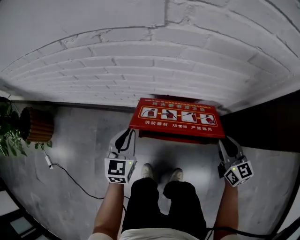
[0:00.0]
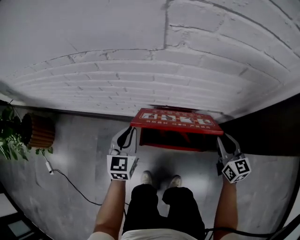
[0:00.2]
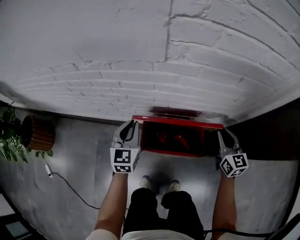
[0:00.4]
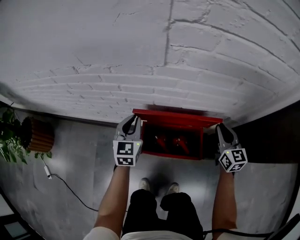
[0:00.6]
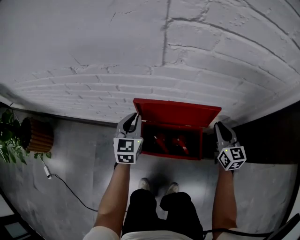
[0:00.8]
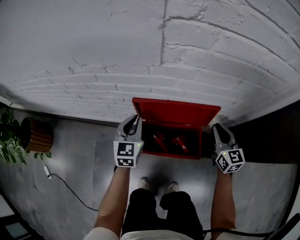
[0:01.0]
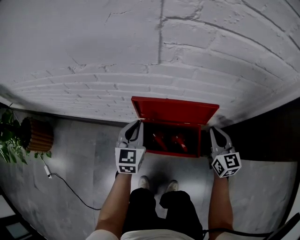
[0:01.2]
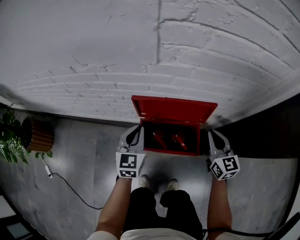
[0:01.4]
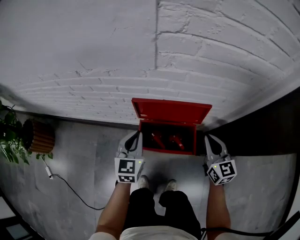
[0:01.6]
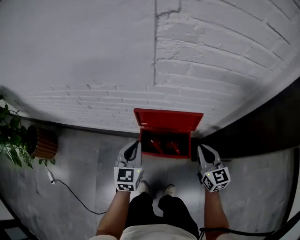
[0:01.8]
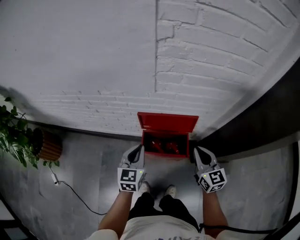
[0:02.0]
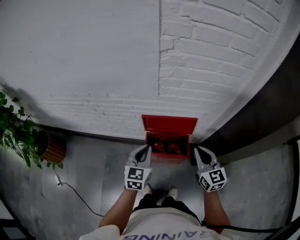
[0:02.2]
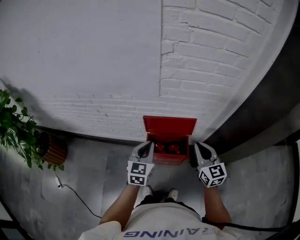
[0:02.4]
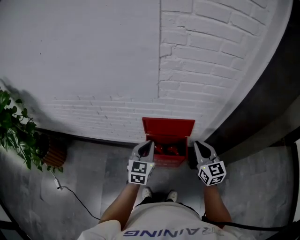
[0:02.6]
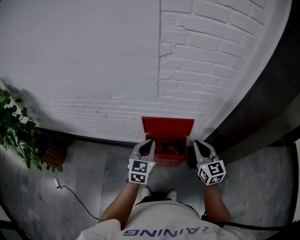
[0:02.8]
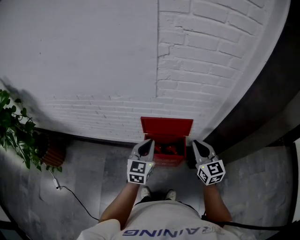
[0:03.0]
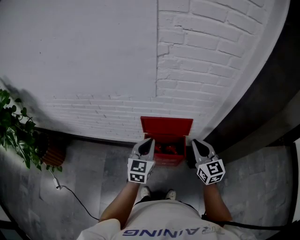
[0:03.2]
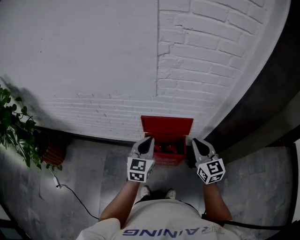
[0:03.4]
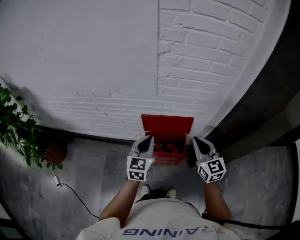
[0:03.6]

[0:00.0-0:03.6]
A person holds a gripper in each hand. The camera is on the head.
0:00.0 to 0:01.8: Both grippers move upward, roughly 15 cm. The right gripper closes.
0:01.8 to 0:03.6: The left gripper goes approximately 15 cm upward and backward; the right gripper moves upward, some 15 cm.

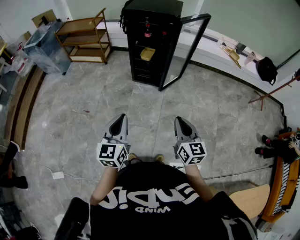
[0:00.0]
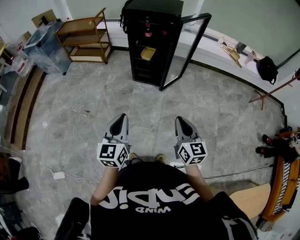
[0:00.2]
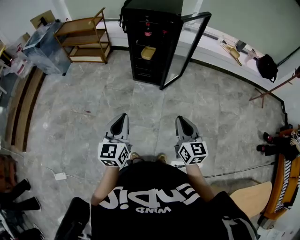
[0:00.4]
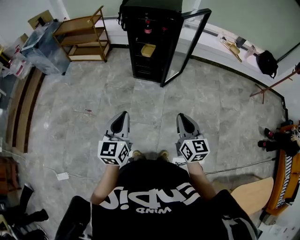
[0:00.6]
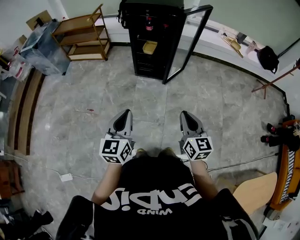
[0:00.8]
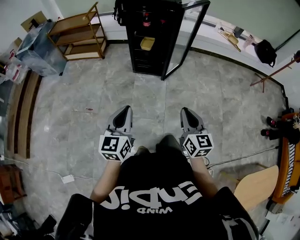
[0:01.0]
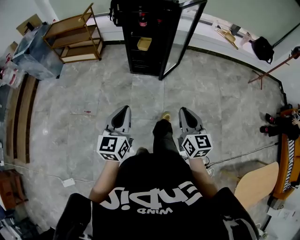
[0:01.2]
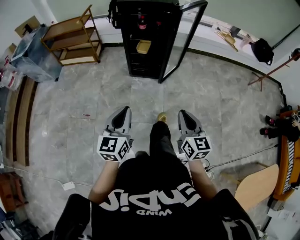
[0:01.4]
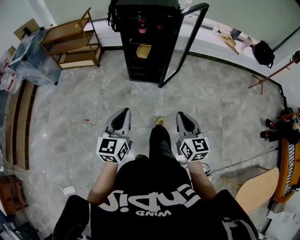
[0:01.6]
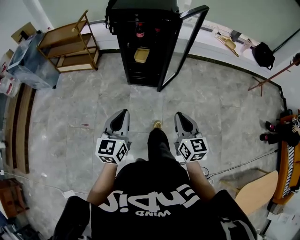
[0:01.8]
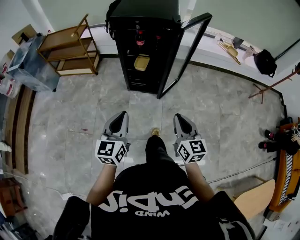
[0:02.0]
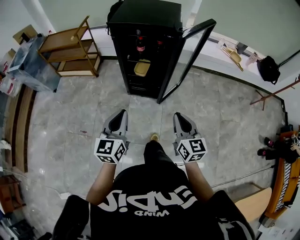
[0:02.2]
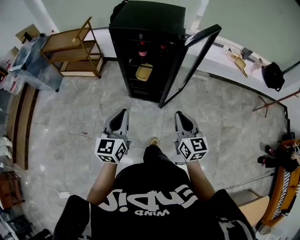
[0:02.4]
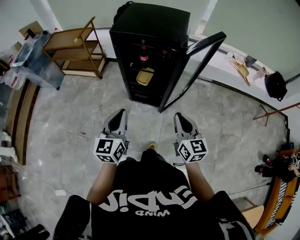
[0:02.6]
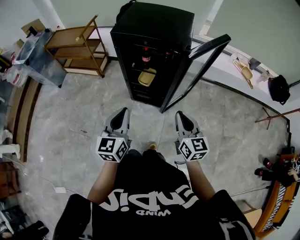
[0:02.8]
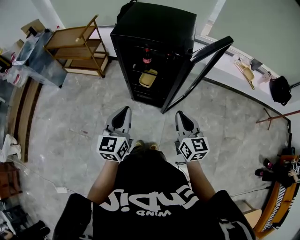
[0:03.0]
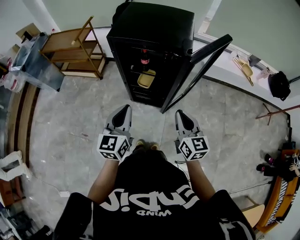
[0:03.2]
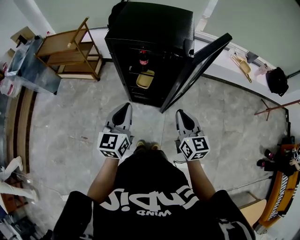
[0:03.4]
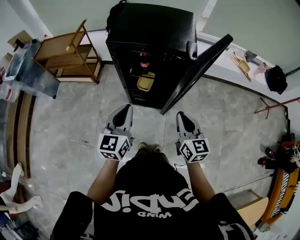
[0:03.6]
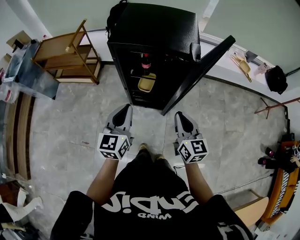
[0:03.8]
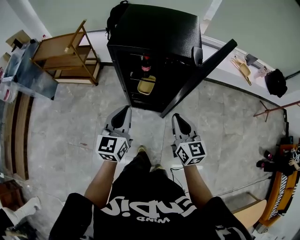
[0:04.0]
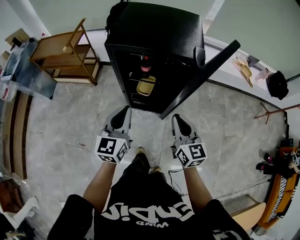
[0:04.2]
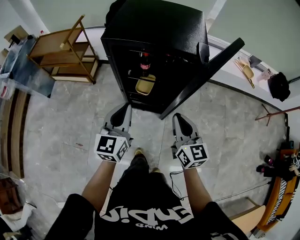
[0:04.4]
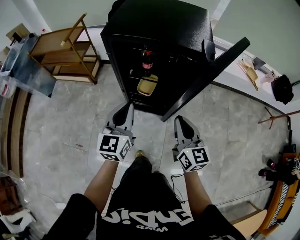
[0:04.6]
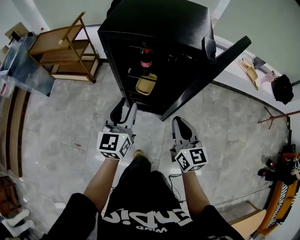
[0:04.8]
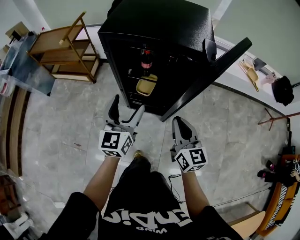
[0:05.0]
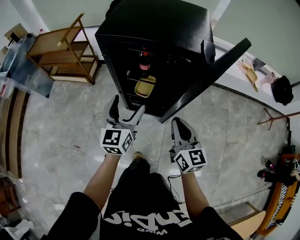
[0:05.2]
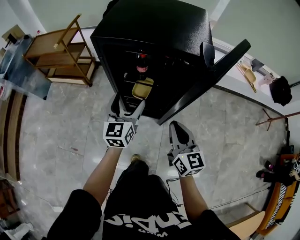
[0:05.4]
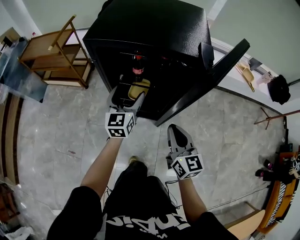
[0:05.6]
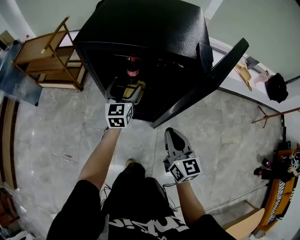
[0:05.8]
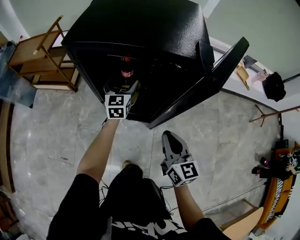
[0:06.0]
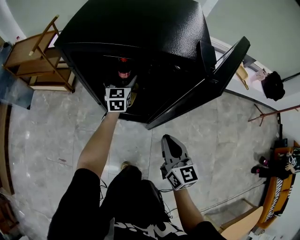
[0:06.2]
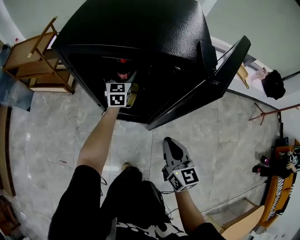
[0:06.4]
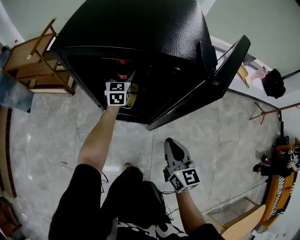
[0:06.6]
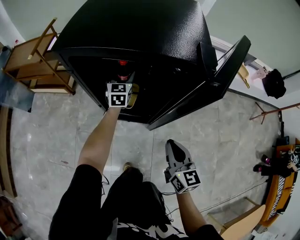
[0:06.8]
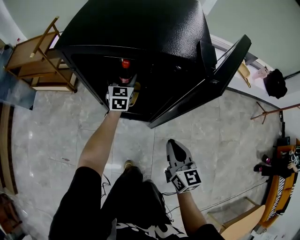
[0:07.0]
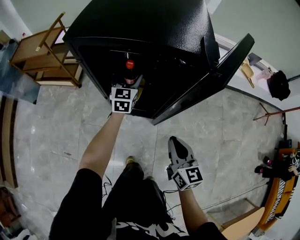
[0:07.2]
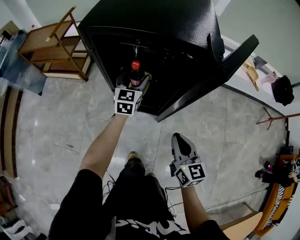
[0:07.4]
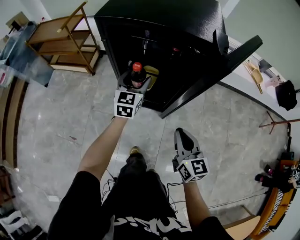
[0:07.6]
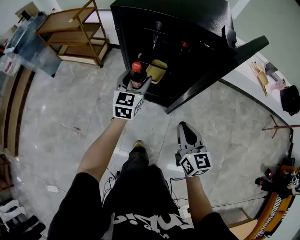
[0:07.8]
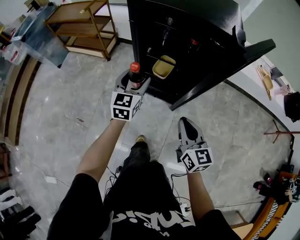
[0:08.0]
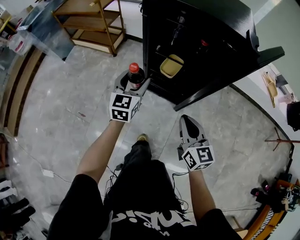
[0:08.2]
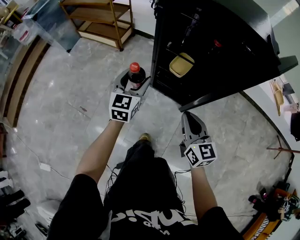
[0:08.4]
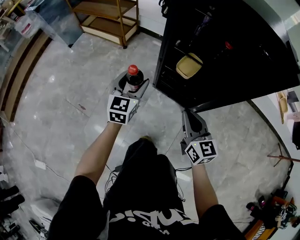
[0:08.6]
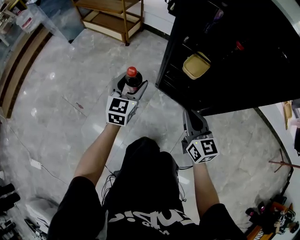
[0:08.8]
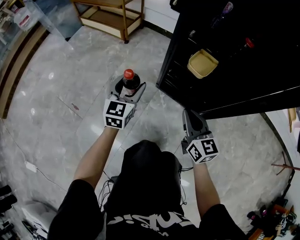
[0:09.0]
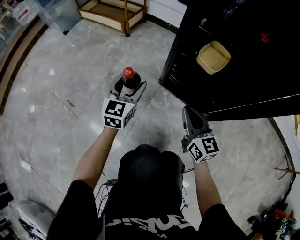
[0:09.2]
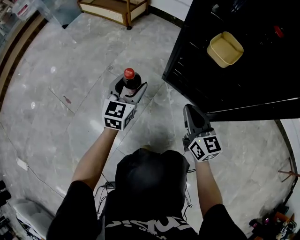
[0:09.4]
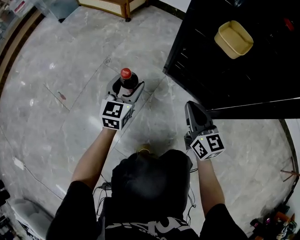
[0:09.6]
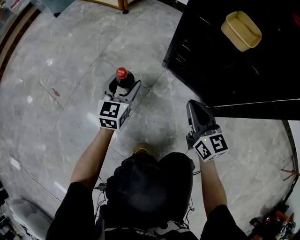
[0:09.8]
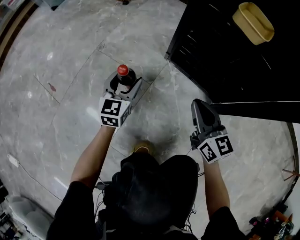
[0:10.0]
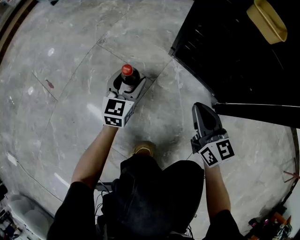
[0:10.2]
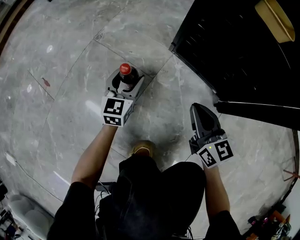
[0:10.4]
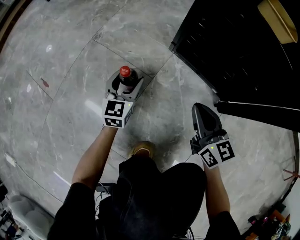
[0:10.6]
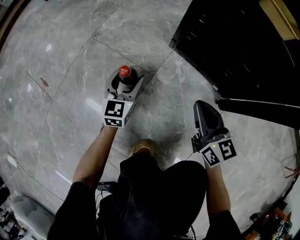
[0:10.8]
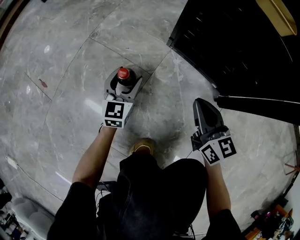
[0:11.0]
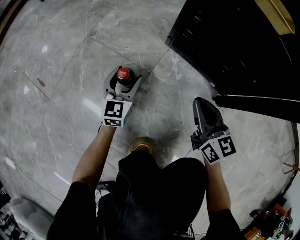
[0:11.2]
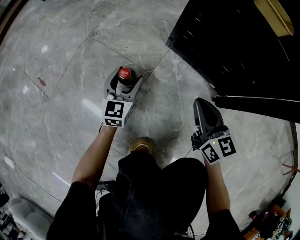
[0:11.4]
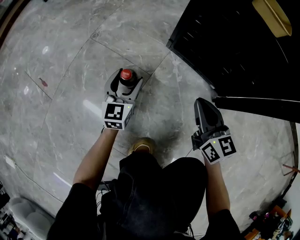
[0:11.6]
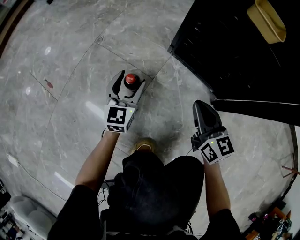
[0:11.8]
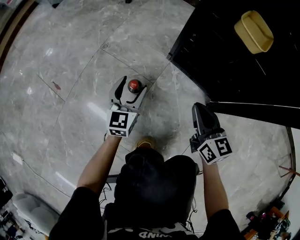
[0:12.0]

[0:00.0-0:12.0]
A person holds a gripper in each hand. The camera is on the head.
0:00.0 to 0:01.6: The left gripper heads forward, covering about 10 cm, while the right gripper moves forward and to the left, some 10 cm.
0:01.6 to 0:03.0: Both grippers travel together forward, roughly 30 cm.
0:03.0 to 0:04.4: The left gripper is displaced forward and downward by some 15 cm, while the right gripper moves forward and to the left, some 10 cm.
0:04.4 to 0:06.0: The right gripper shifts some 10 cm downward; the left gripper heads forward and downward, covering some 30 cm, and opens its fingers.
0:06.0 to 0:07.6: The left gripper moves backward, approximately 10 cm; the right gripper heads backward, covering about 5 cm.
0:07.6 to 0:09.0: Both grippers travel together downward and to the left, about 30 cm. The right gripper changes its angle by some 20 degrees.
0:09.0 to 0:10.4: Both grippers move downward, roughly 35 cm.
0:10.4 to 0:12.0: The two grippers go roughly 10 cm upward.

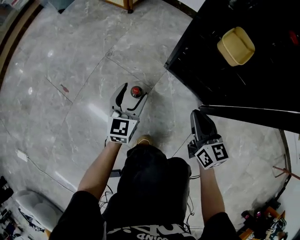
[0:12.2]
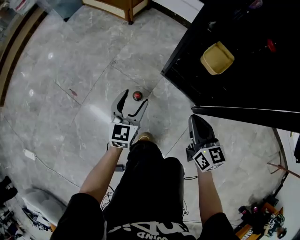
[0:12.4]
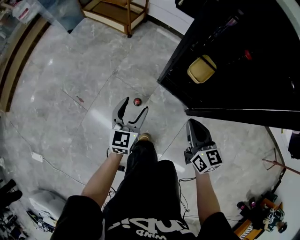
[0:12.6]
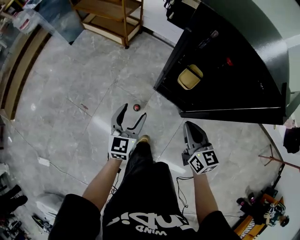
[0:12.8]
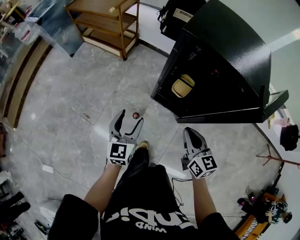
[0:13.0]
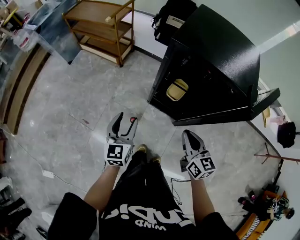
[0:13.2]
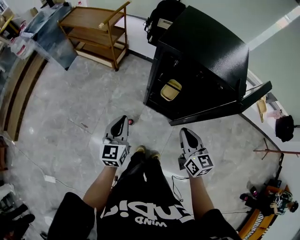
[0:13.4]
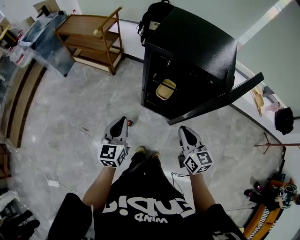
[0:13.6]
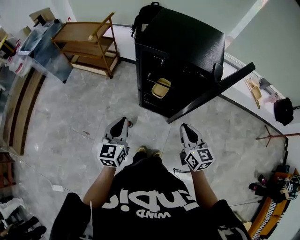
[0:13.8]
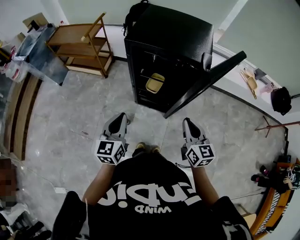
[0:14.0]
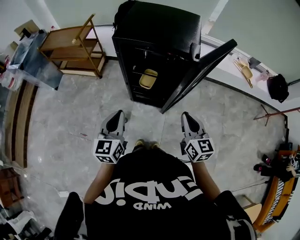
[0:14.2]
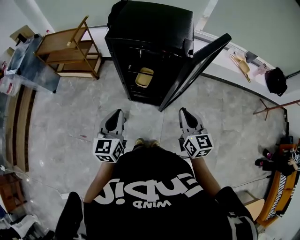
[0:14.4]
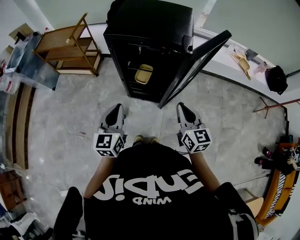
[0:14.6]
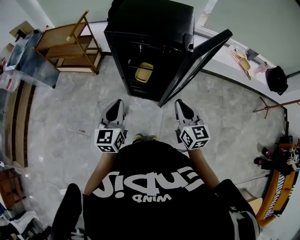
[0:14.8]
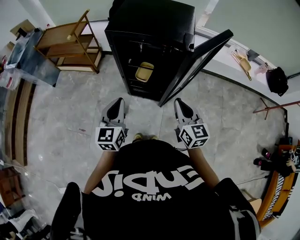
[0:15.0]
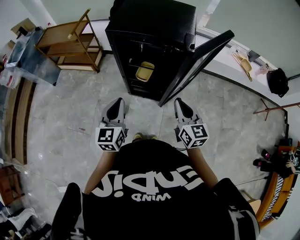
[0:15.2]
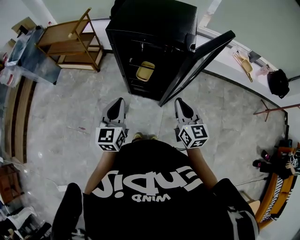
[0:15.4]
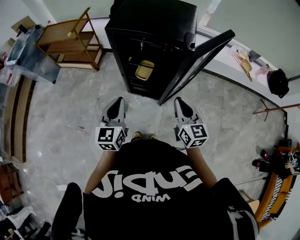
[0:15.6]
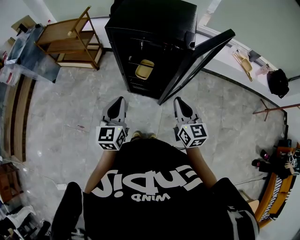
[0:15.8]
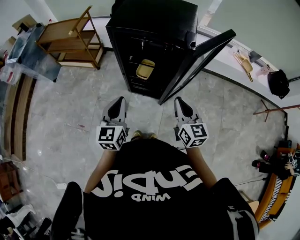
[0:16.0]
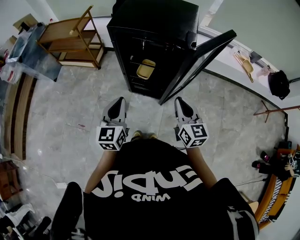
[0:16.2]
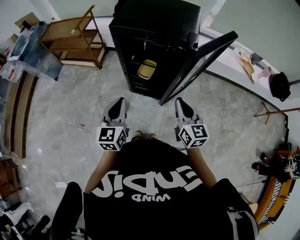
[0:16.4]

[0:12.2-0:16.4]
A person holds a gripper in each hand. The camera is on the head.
0:12.2 to 0:13.6: The two grippers go approximately 50 cm upward. The left gripper closes up.
0:13.6 to 0:15.0: The two grippers go some 10 cm to the right.
0:15.0 to 0:16.4: There are only small adjustments of the grippers.

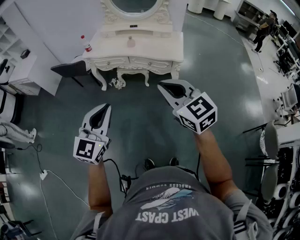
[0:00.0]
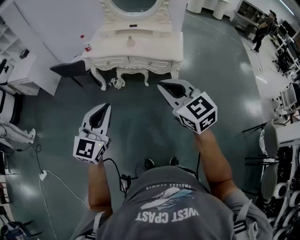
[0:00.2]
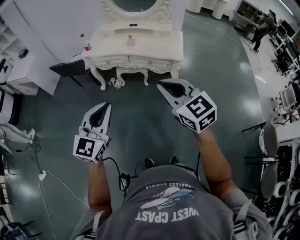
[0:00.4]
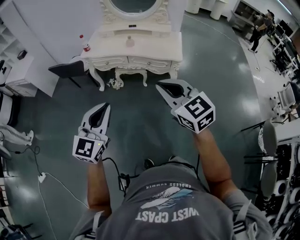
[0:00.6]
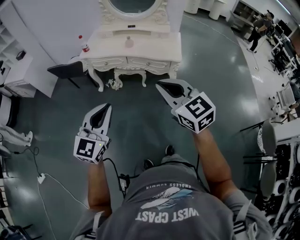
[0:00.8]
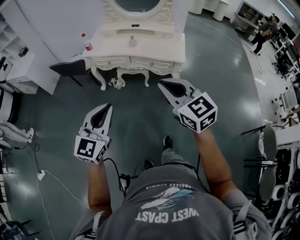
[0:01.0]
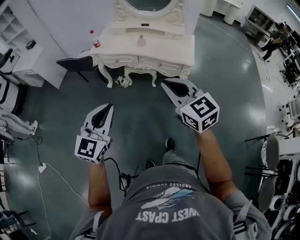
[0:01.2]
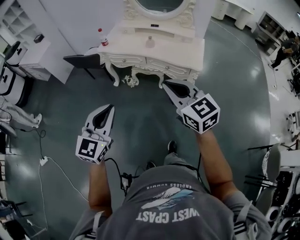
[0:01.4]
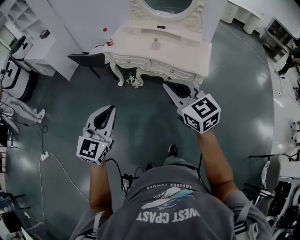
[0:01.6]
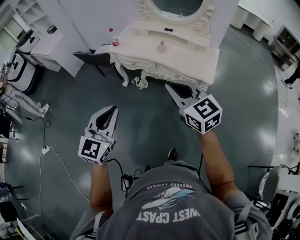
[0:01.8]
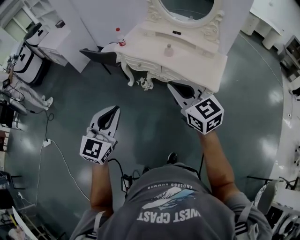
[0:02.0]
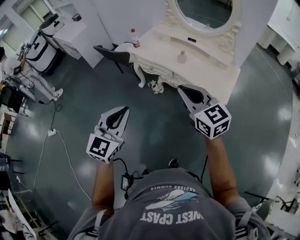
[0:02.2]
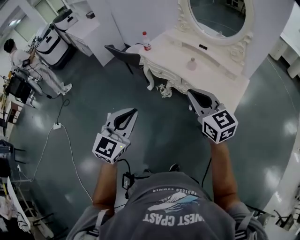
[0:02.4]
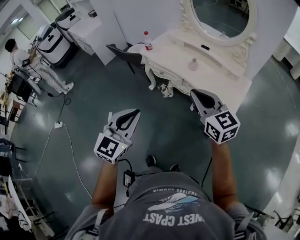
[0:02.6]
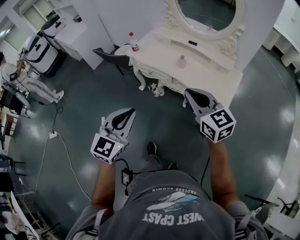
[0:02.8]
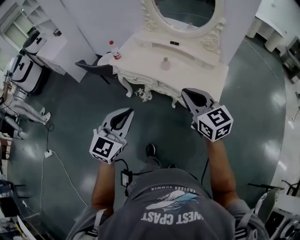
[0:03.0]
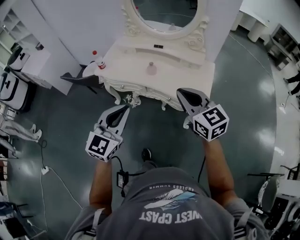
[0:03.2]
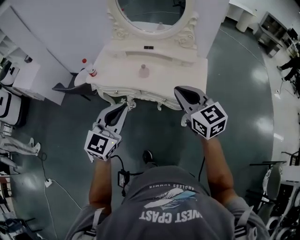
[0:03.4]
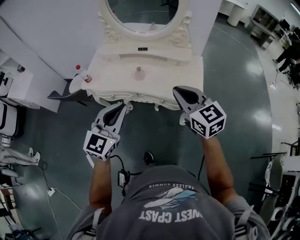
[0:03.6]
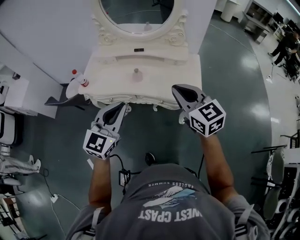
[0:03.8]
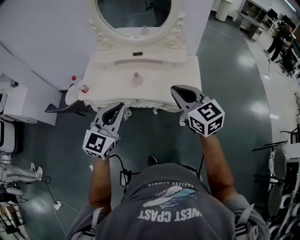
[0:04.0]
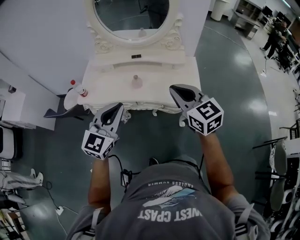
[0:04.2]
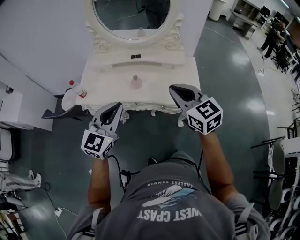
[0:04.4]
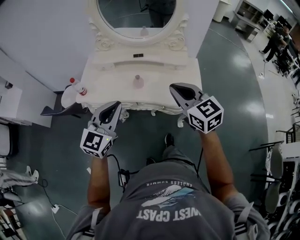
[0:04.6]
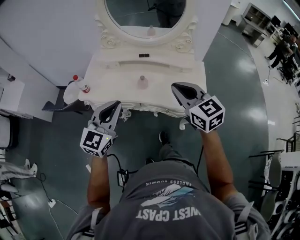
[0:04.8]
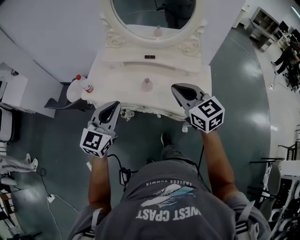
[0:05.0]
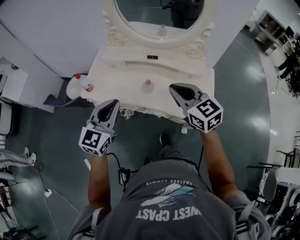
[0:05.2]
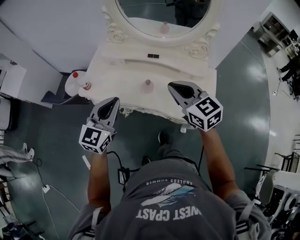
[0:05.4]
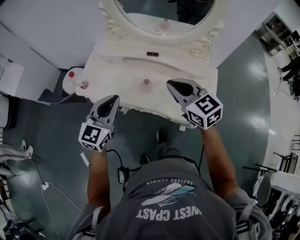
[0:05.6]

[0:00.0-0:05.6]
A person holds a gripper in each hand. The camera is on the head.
0:00.0 to 0:01.4: The left gripper heads forward, covering about 5 cm, while the right gripper shifts some 10 cm forward.
0:01.4 to 0:02.8: The two grippers go some 20 cm forward and to the right.
0:02.8 to 0:04.2: The right gripper moves some 15 cm, and turns by roughly 30 degrees; the left gripper ends up about 25 cm from where it was, and rotates about 30 degrees.
0:04.2 to 0:05.6: The right gripper goes roughly 20 cm forward; the left gripper heads forward and downward, covering approximately 15 cm.
